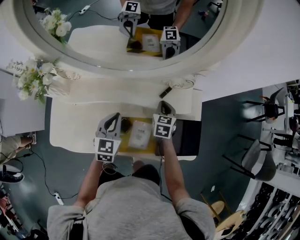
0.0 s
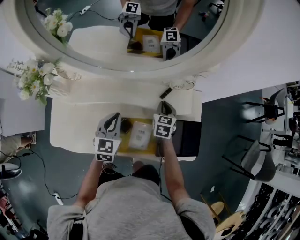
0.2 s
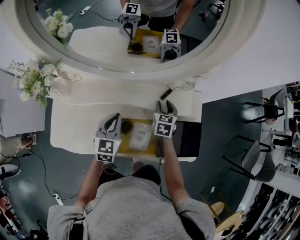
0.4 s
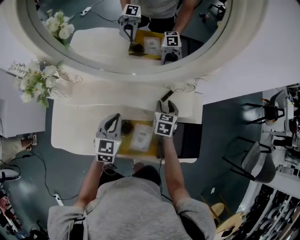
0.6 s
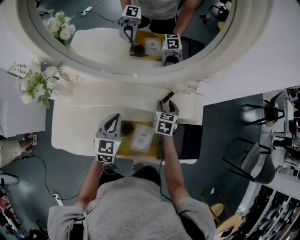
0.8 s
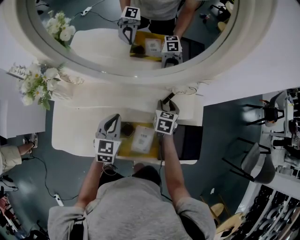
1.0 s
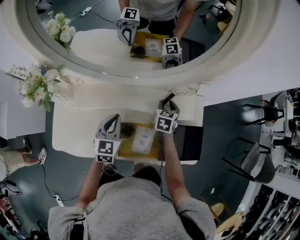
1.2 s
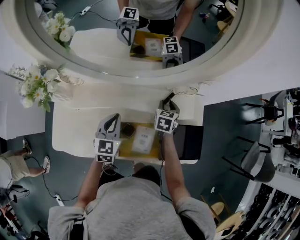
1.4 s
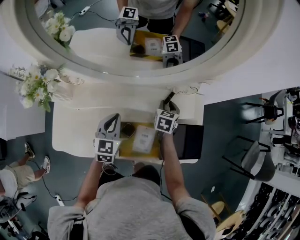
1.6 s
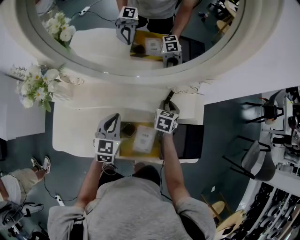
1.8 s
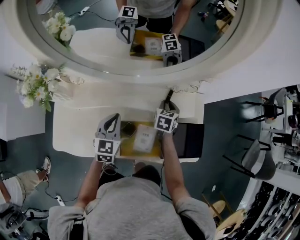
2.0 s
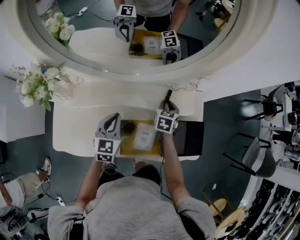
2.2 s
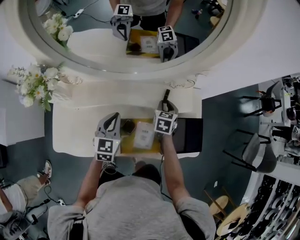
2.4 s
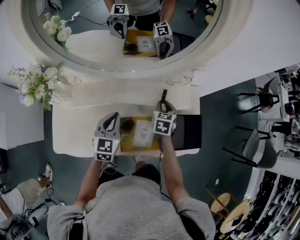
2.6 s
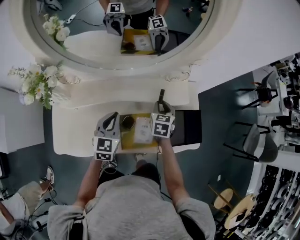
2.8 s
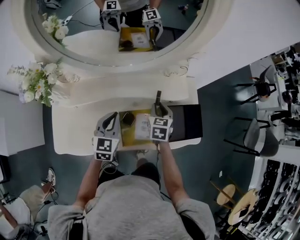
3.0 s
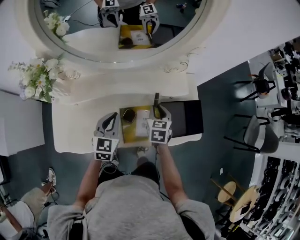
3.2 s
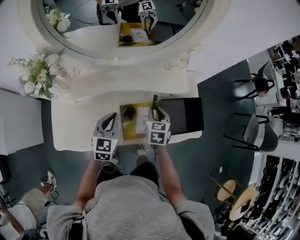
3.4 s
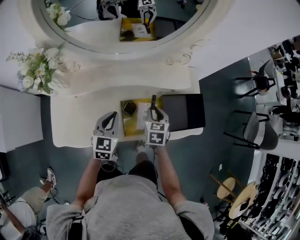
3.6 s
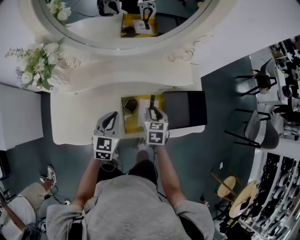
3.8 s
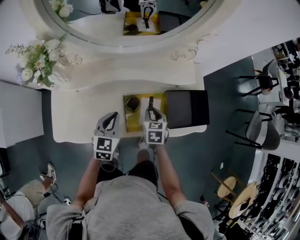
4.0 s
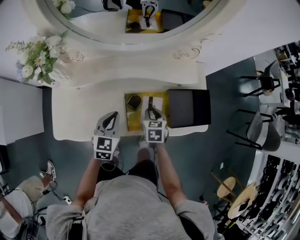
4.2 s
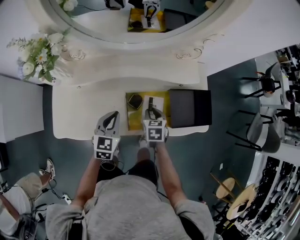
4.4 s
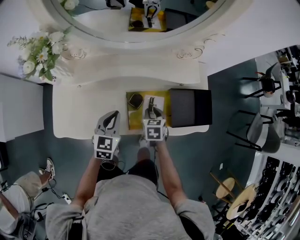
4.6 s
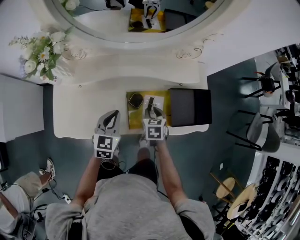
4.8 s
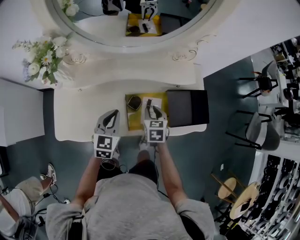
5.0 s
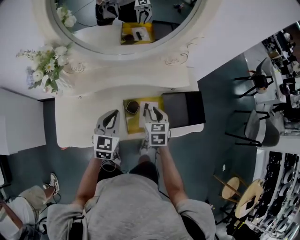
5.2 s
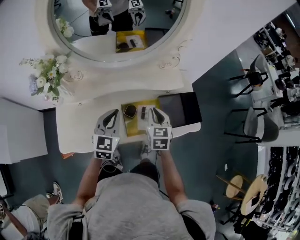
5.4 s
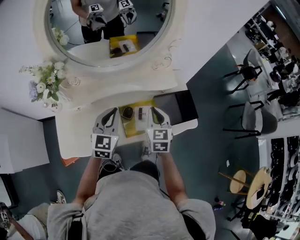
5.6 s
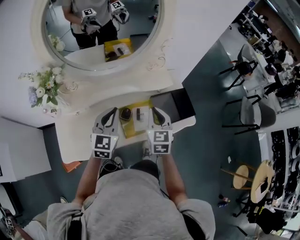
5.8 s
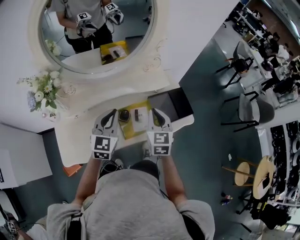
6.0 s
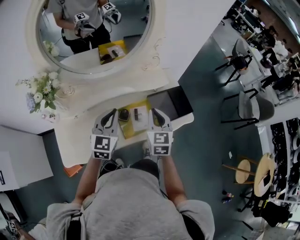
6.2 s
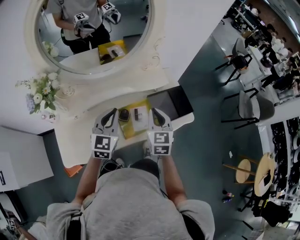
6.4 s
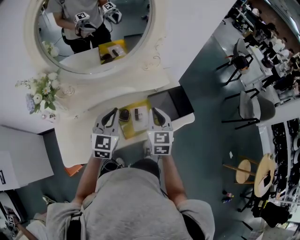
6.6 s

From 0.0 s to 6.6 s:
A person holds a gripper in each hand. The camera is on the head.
From 0.0 s to 1.6 s: The right gripper opens up.
From 1.6 s to 3.2 s: The right gripper travels backward by roughly 15 cm; the left gripper heads backward, covering roughly 5 cm.
From 3.2 s to 5.0 s: The two grippers go approximately 5 cm backward.
From 5.0 s to 6.6 s: Both grippers travel together upward, approximately 15 cm. The left gripper rotates roughly 20 degrees; the right gripper changes its angle by approximately 30 degrees.

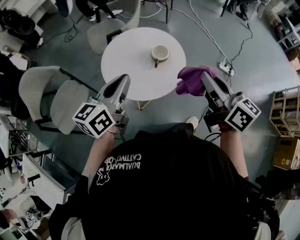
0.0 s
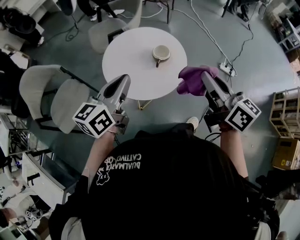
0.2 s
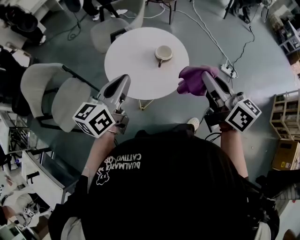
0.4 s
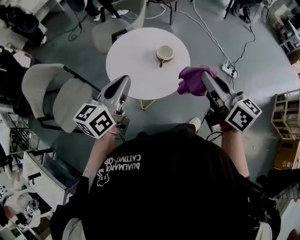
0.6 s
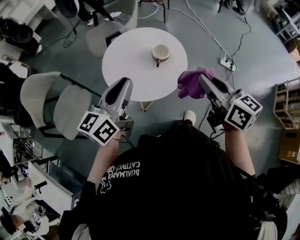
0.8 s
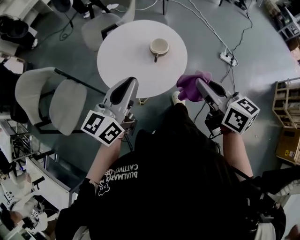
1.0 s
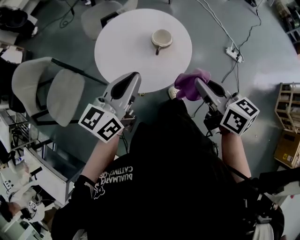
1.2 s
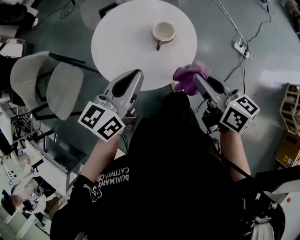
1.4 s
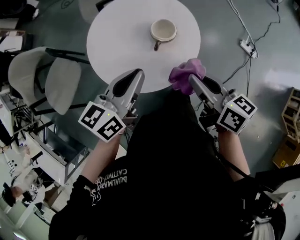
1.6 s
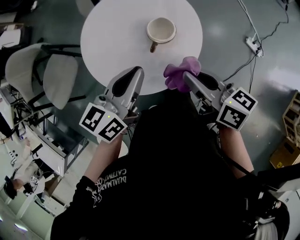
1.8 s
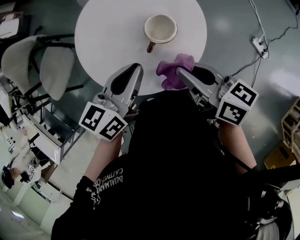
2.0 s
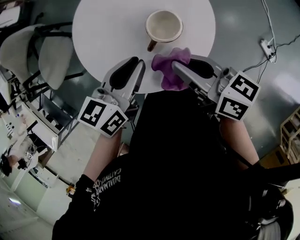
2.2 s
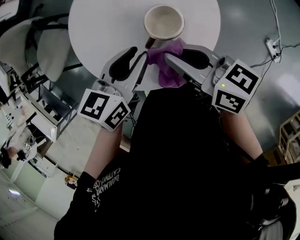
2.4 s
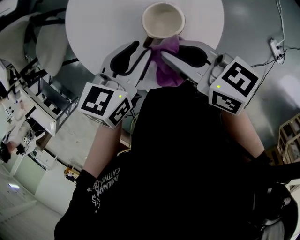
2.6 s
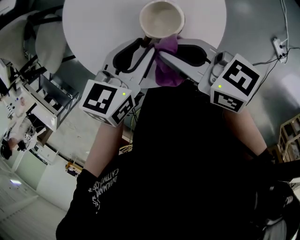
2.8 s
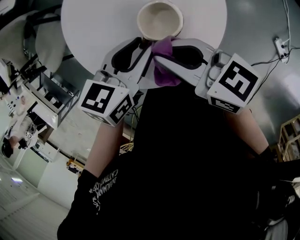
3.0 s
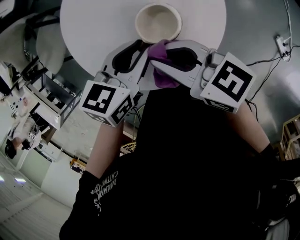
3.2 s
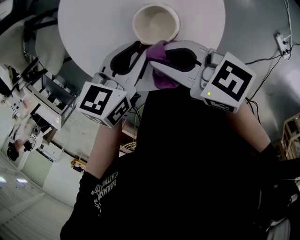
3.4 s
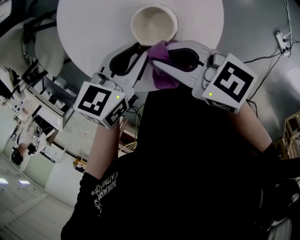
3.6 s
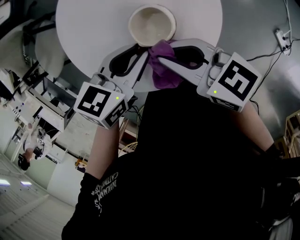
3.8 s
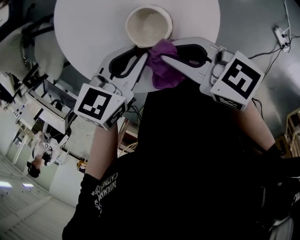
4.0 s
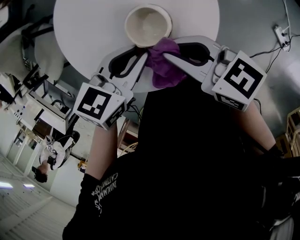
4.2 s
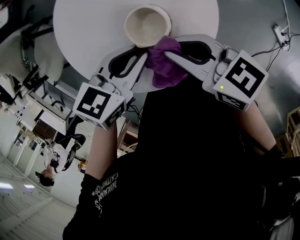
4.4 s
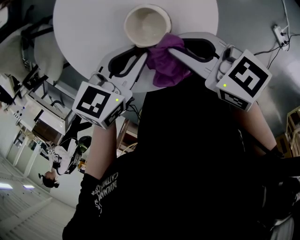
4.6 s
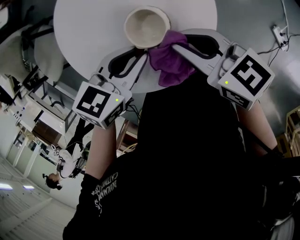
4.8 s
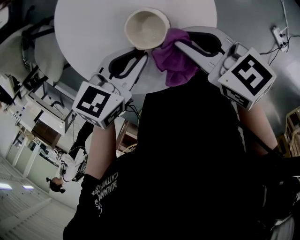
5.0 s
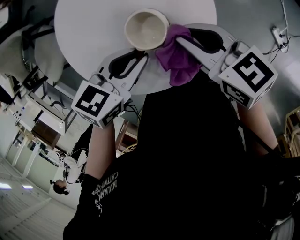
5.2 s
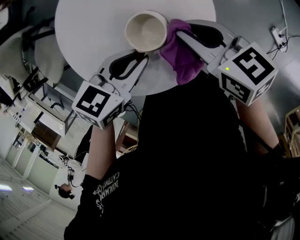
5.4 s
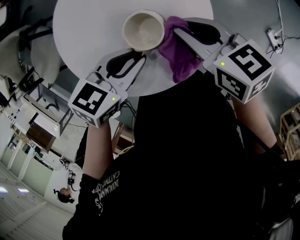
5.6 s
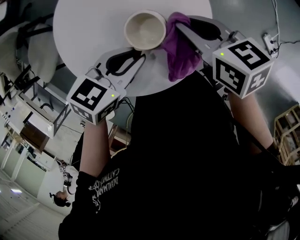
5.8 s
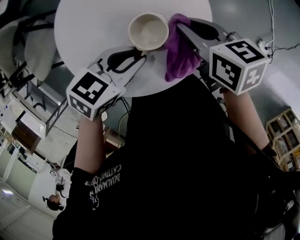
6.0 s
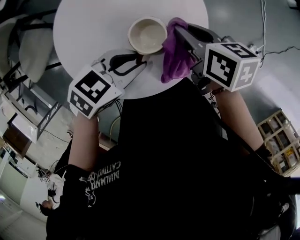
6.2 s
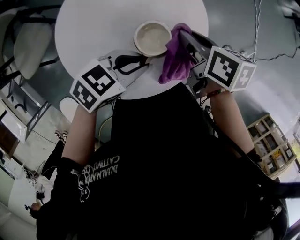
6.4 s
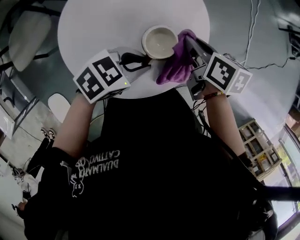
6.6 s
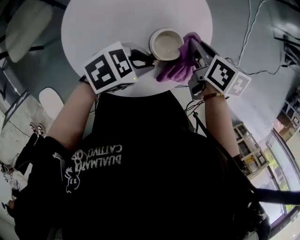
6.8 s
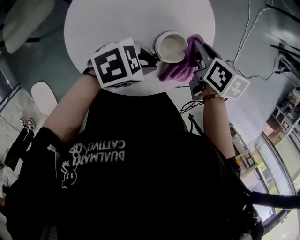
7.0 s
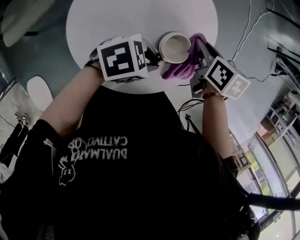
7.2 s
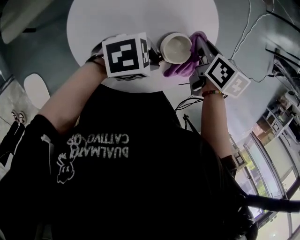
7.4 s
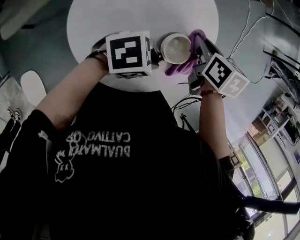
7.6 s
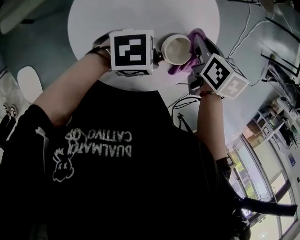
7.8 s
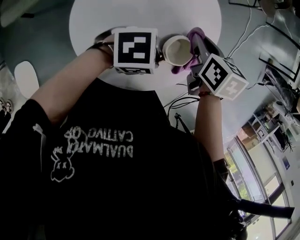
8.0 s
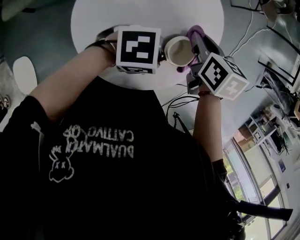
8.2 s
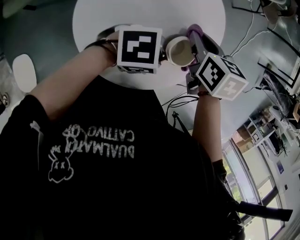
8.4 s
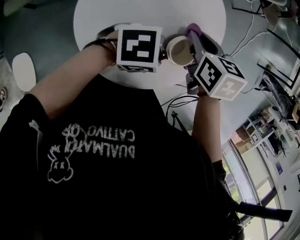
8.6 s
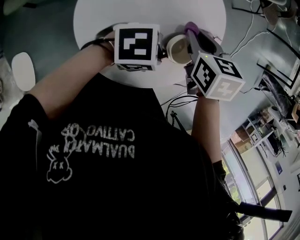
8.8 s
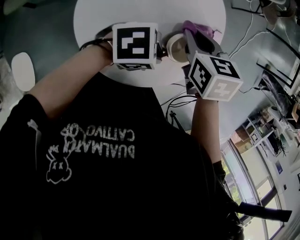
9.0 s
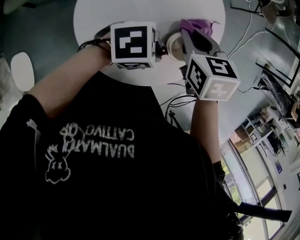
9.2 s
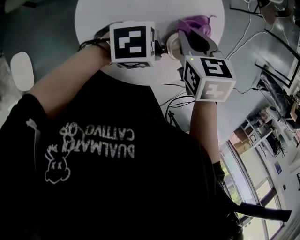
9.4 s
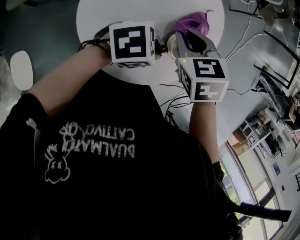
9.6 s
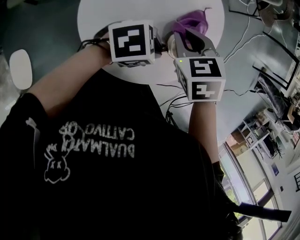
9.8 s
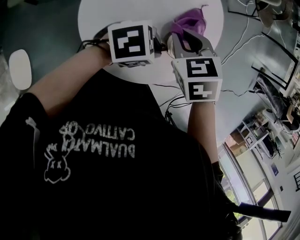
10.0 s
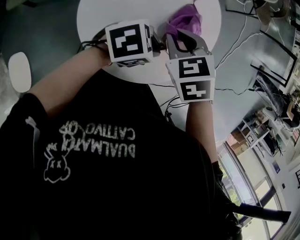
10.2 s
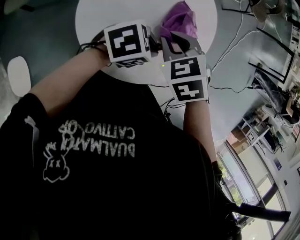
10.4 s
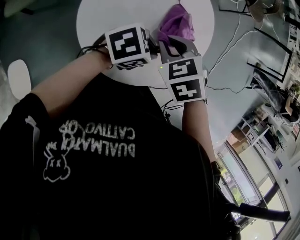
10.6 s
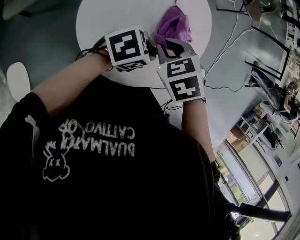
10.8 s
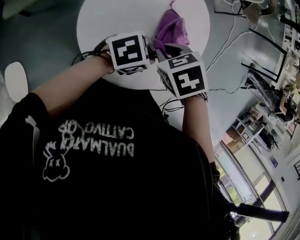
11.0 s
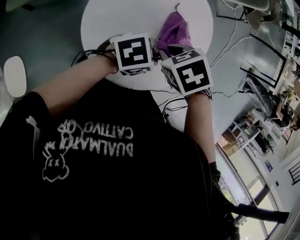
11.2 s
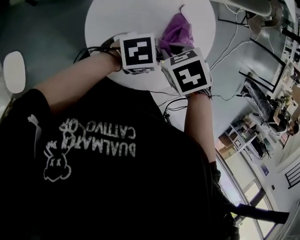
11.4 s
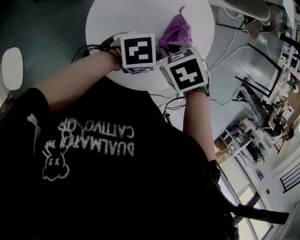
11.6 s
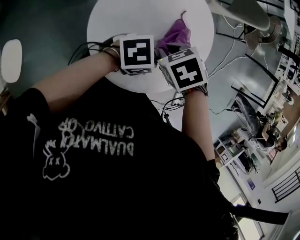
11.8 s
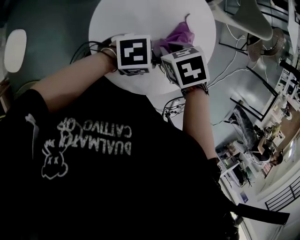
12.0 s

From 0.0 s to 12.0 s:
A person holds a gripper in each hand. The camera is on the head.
From 0.0 s to 1.6 s: The right gripper moves downward, about 20 cm, and swivels approximately 20 degrees. The left gripper is displaced downward, to the right and forward by about 15 cm.
From 1.6 s to 3.0 s: The right gripper shifts by approximately 15 cm, and rotates approximately 40 degrees, while the left gripper moves downward, approximately 15 cm, changes its angle by roughly 30 degrees, and opens up.
From 3.0 s to 4.4 s: The grippers stay close to where they were, moving slightly.
From 4.4 s to 6.0 s: The right gripper ends up roughly 10 cm from where it was, and rotates some 20 degrees.
From 6.0 s to 7.6 s: The left gripper changes its angle by approximately 30 degrees. The right gripper ends up approximately 5 cm from where it was, and turns by some 30 degrees.
From 7.6 s to 9.0 s: The right gripper moves approximately 10 cm, and turns by approximately 30 degrees.
From 9.0 s to 10.4 s: The right gripper moves about 5 cm, and changes its angle by approximately 30 degrees.
From 10.4 s to 12.0 s: The right gripper swivels some 20 degrees, while the left gripper ends up roughly 5 cm from where it was.

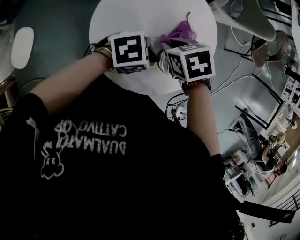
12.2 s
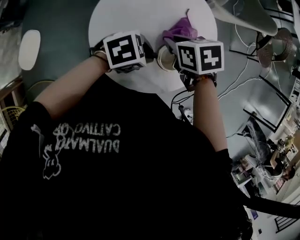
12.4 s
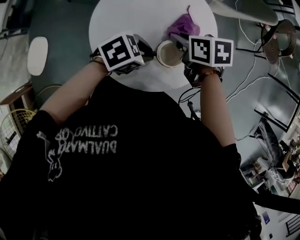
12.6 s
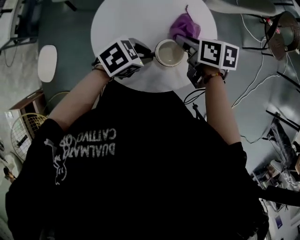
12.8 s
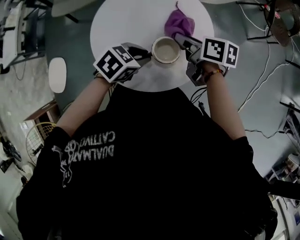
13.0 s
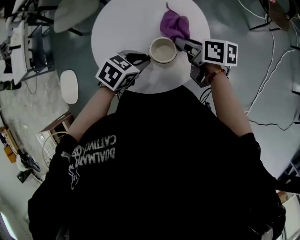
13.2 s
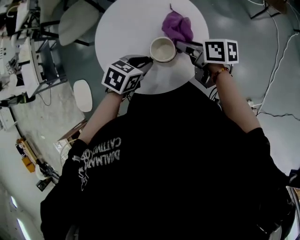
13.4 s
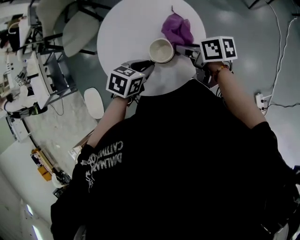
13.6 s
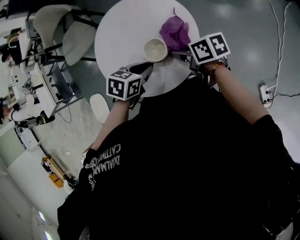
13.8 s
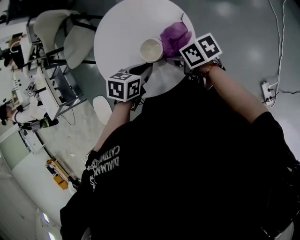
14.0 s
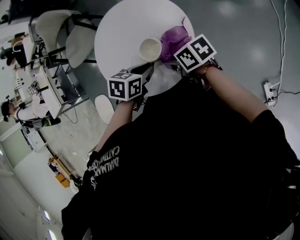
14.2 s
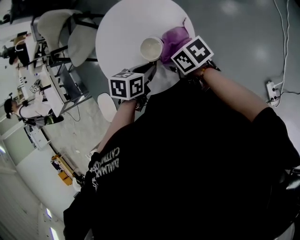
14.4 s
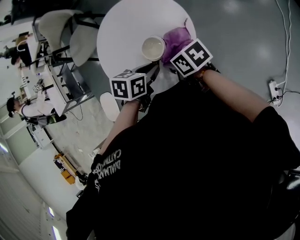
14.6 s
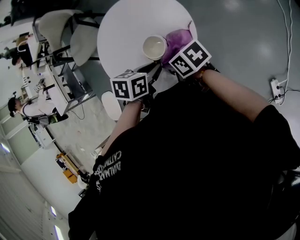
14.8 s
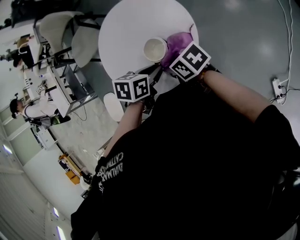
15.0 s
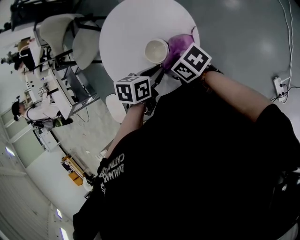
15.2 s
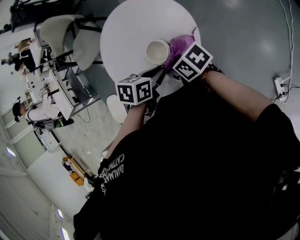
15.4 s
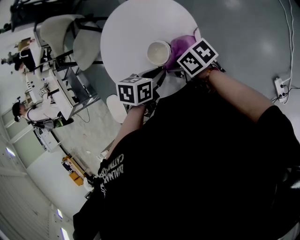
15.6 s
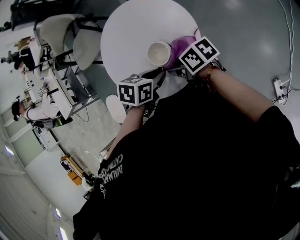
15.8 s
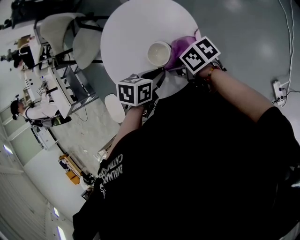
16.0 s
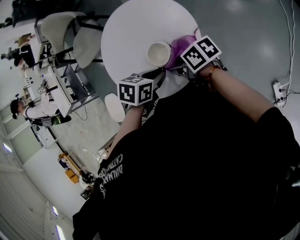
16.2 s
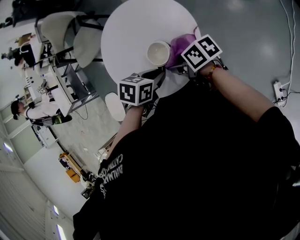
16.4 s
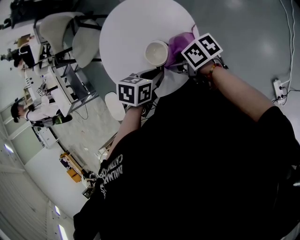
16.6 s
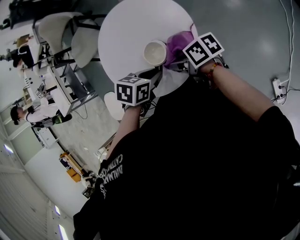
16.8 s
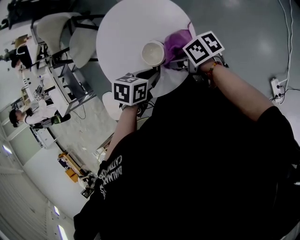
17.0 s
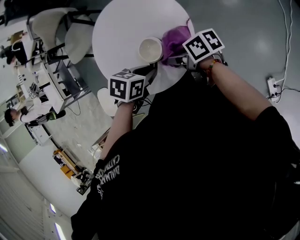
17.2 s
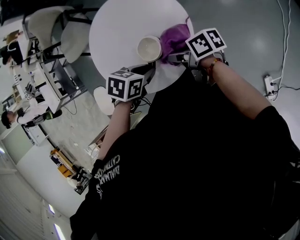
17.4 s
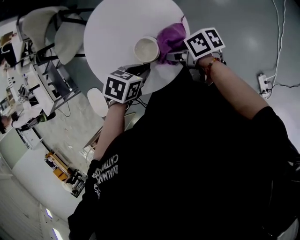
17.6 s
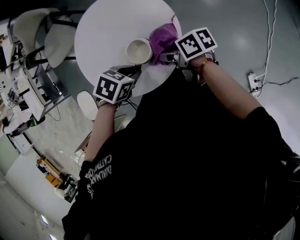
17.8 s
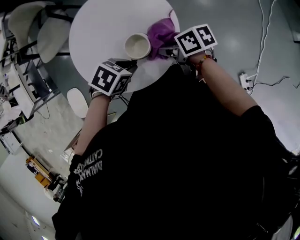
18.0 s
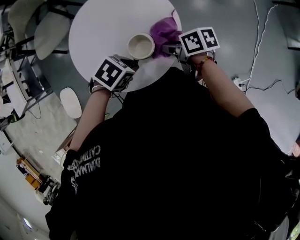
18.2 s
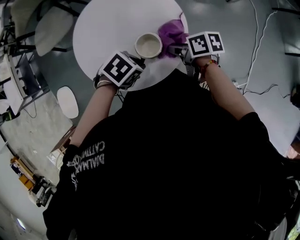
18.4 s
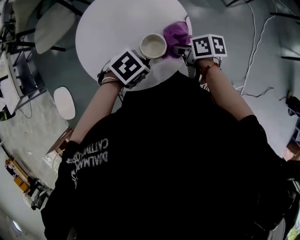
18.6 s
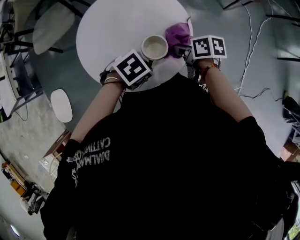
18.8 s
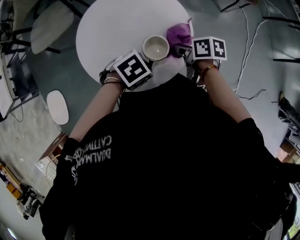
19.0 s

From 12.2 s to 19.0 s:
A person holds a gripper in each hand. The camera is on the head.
From 12.2 s to 13.6 s: The left gripper swivels approximately 30 degrees. Meanwhile the right gripper changes place by approximately 15 cm, and tilts its fingers some 50 degrees upward.
From 13.6 s to 15.0 s: The right gripper moves about 10 cm, and changes its angle by some 30 degrees; the left gripper moves roughly 5 cm.
From 15.0 s to 16.2 s: The grippers make only small movements.
From 16.2 s to 17.6 s: The grippers make only small movements.
From 17.6 s to 19.0 s: The right gripper rotates some 30 degrees; the left gripper swivels roughly 30 degrees.
